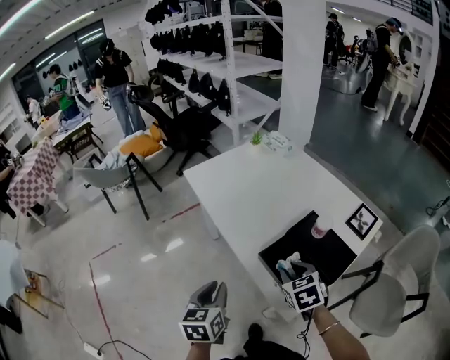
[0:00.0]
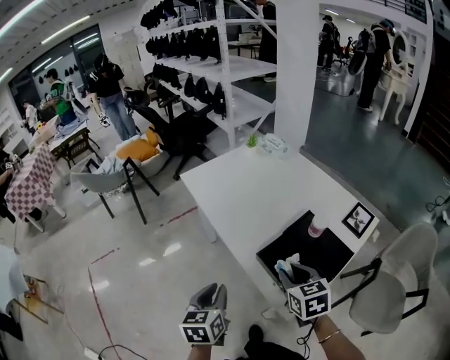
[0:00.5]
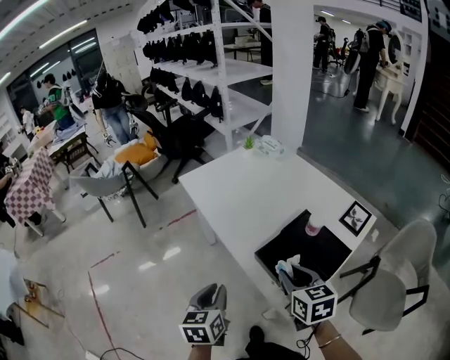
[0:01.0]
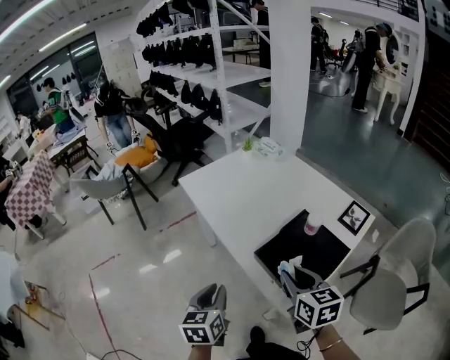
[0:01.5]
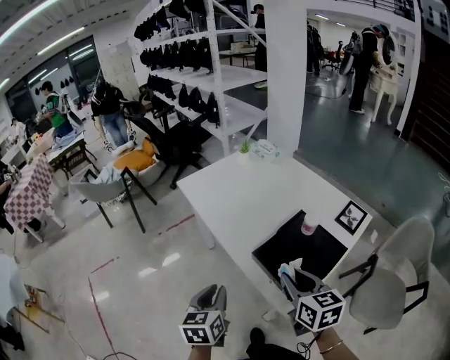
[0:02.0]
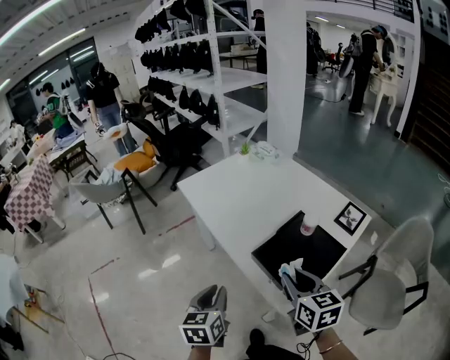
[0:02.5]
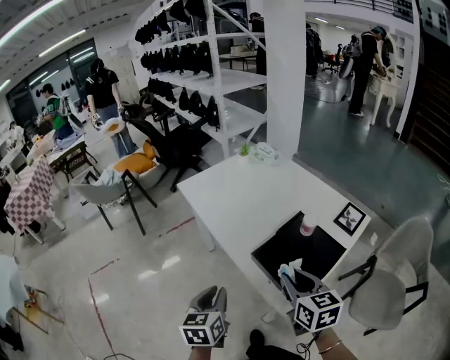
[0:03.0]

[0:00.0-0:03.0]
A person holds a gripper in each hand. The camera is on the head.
0.0 to 1.5 s: The right gripper travels upward and backward by about 10 cm, and changes its angle by some 30 degrees.
1.5 to 3.0 s: The grippers make only small movements.

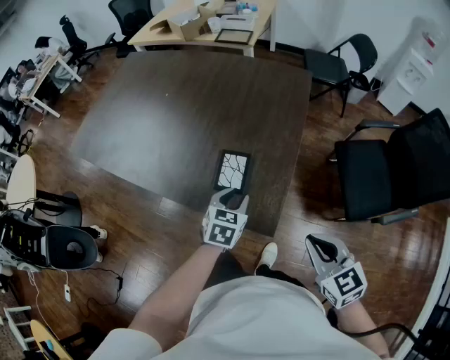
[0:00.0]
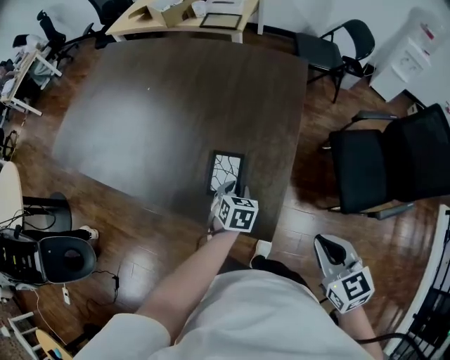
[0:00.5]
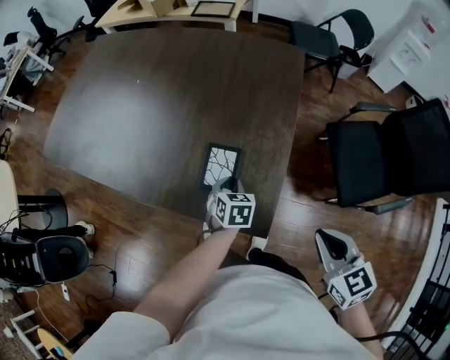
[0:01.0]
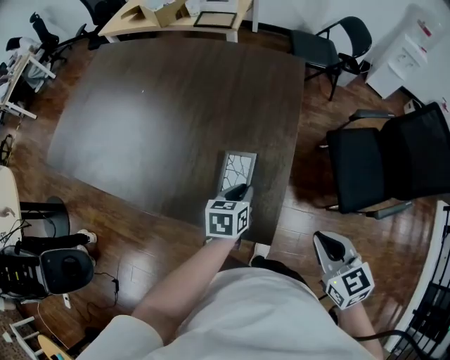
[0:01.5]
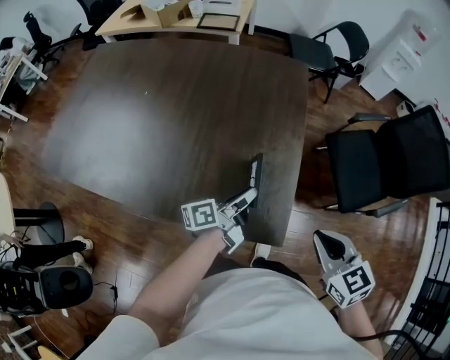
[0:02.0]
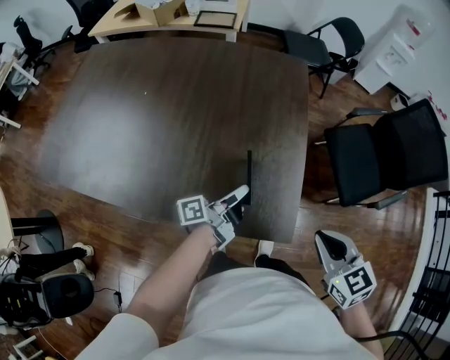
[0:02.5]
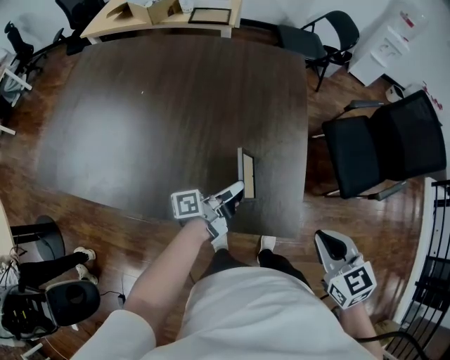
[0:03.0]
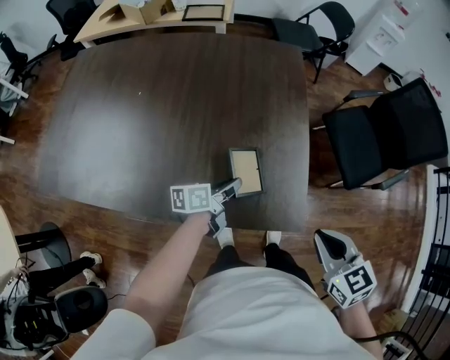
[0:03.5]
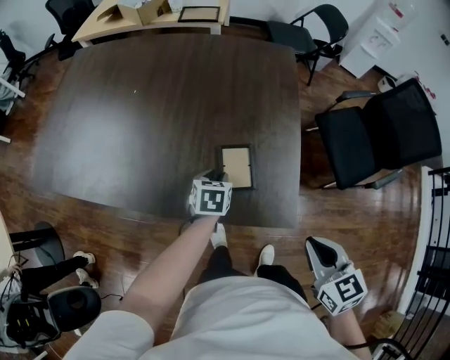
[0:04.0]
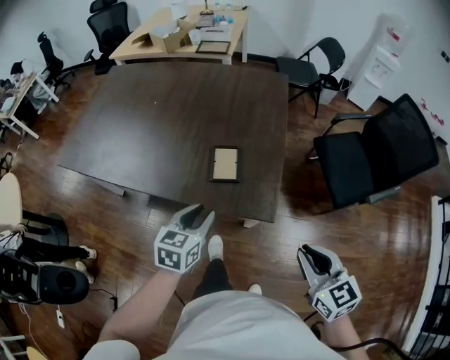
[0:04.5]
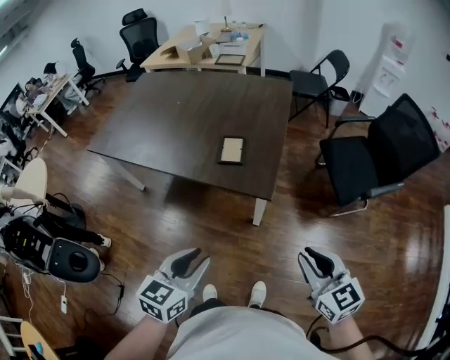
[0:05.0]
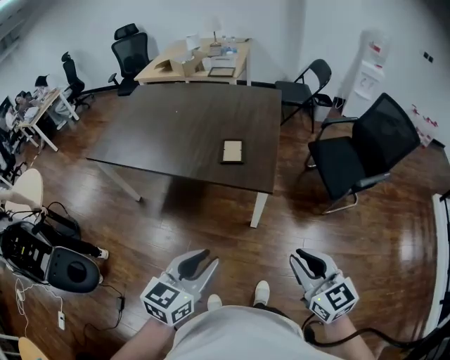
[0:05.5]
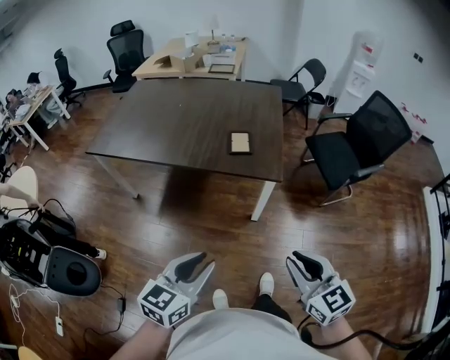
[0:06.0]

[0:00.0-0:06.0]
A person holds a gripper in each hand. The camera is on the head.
0.0 to 2.0 s: Both grippers move forward, roughly 5 cm. The left gripper travels downward and back again, some 10 cm each way, and points its fingers roughly 40 degrees further upward.
2.0 to 4.0 s: The left gripper travels to the left and downward by about 15 cm, and points its fingers about 50 degrees further downward. Meanwhile the right gripper moves backward, approximately 5 cm.
4.0 to 6.0 s: The left gripper moves backward and upward, some 60 cm, and tips its fingers upward by some 30 degrees. Meanwhile the right gripper moves backward, approximately 30 cm, and swivels approximately 20 degrees.

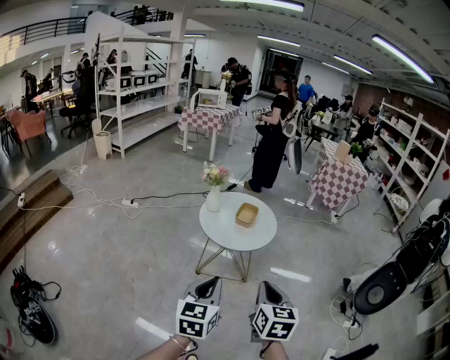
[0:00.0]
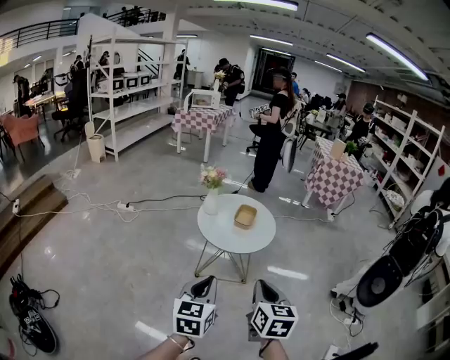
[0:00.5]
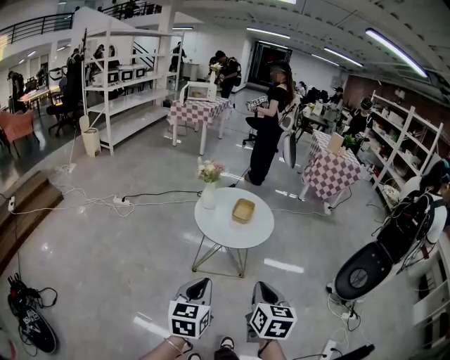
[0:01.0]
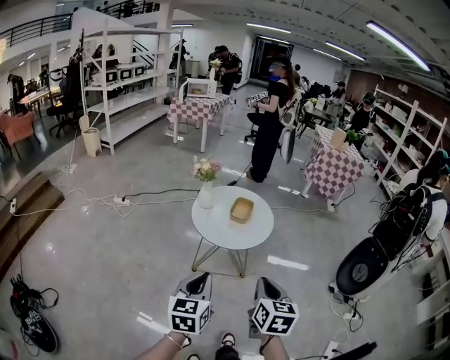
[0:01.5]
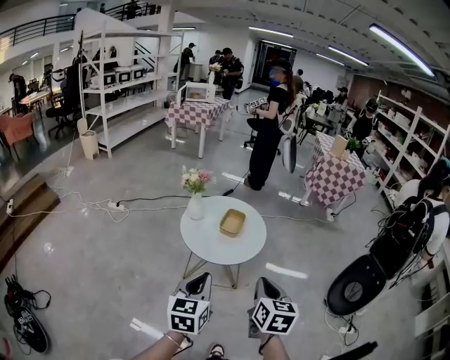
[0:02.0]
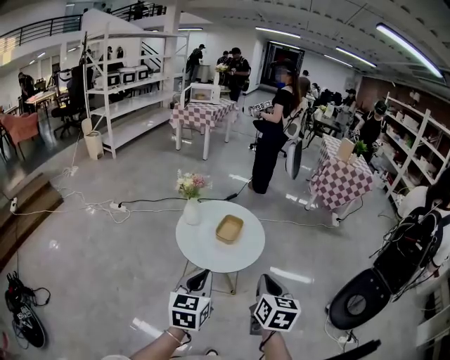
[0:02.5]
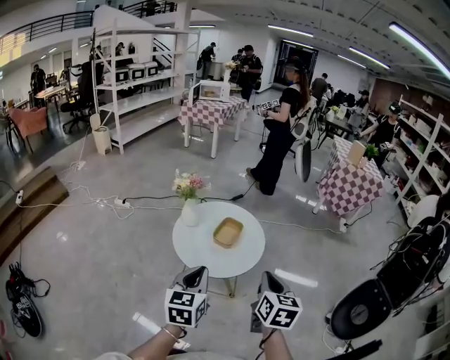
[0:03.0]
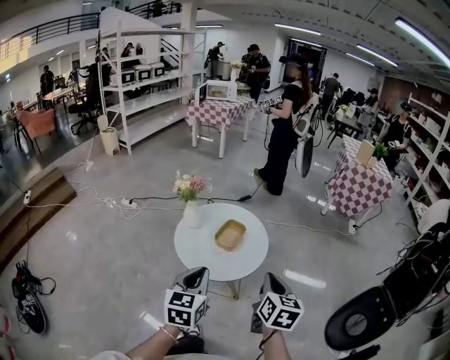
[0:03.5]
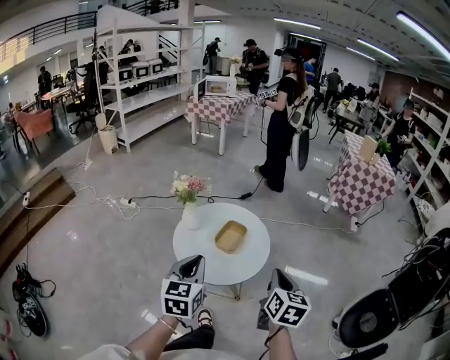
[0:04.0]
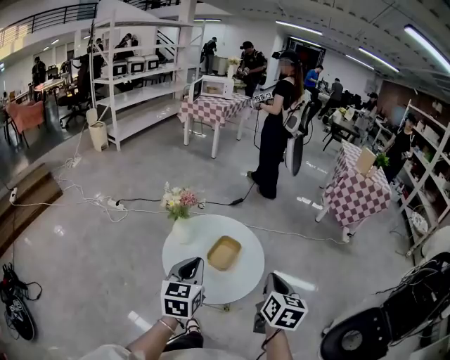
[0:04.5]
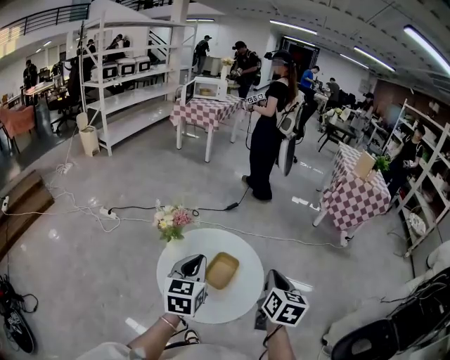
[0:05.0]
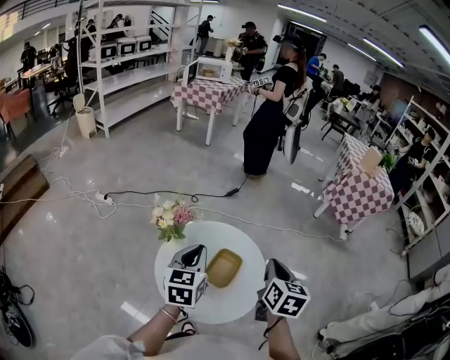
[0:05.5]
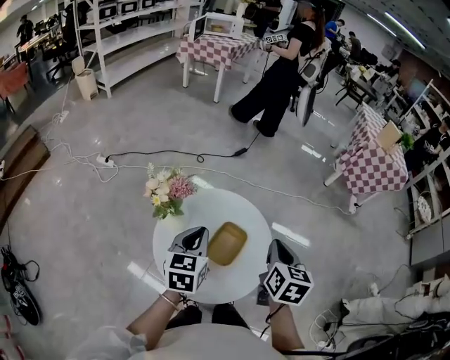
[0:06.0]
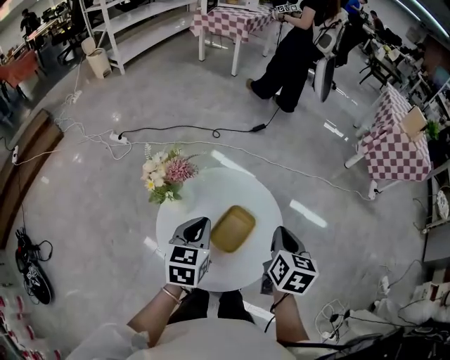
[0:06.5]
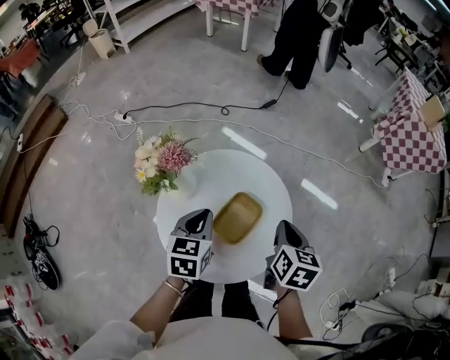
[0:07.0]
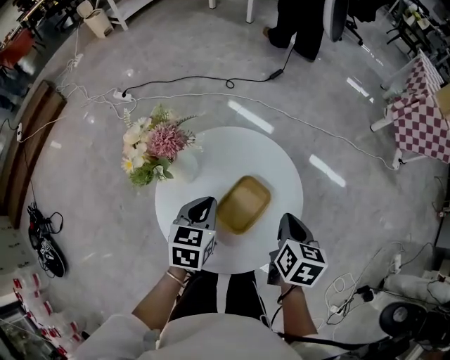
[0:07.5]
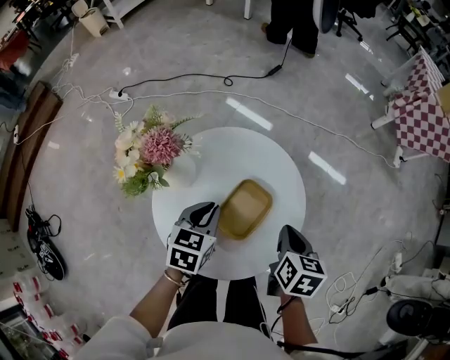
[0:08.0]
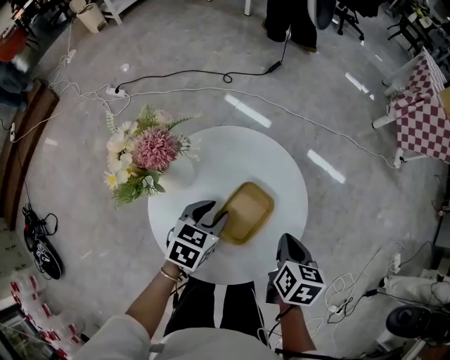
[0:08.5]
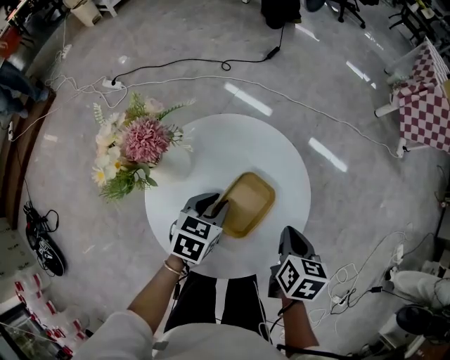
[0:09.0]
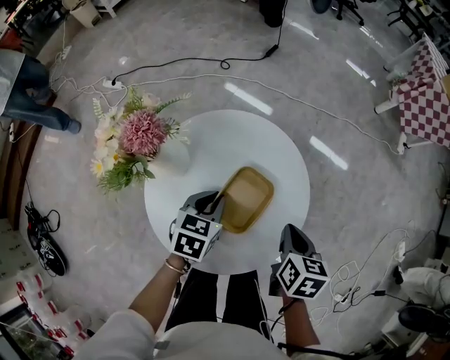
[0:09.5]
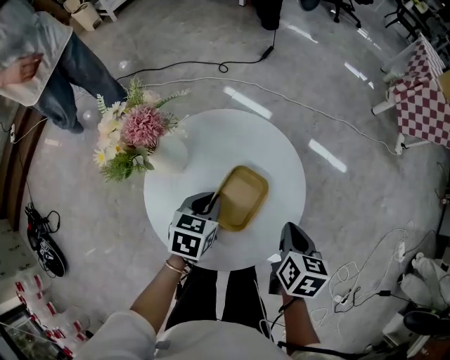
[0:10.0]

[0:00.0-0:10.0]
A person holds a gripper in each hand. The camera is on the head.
0.0 to 2.0 s: Both grippers travel together forward, some 10 cm.
2.0 to 4.0 s: The right gripper moves forward and to the right, roughly 20 cm. Meanwhile the left gripper shifts roughly 15 cm forward.
4.0 to 6.0 s: The grippers both shift forward by roughly 20 cm.
6.0 to 8.0 s: The two grippers go some 15 cm downward. The left gripper changes its angle by about 20 degrees. Meanwhile the right gripper rotates about 20 degrees.
8.0 to 10.0 s: The left gripper opens, then closes again.

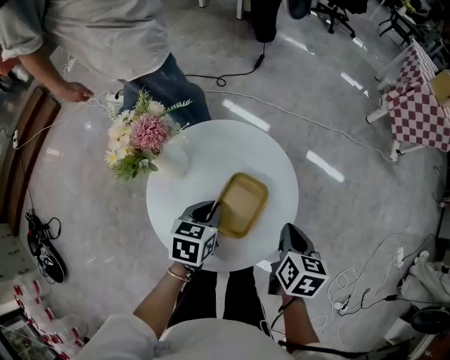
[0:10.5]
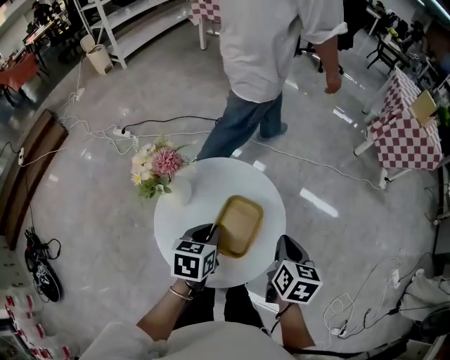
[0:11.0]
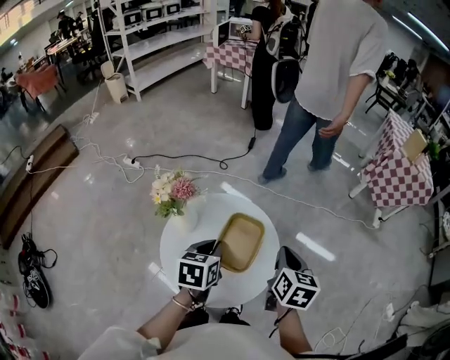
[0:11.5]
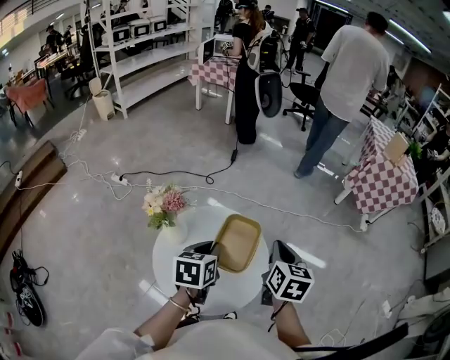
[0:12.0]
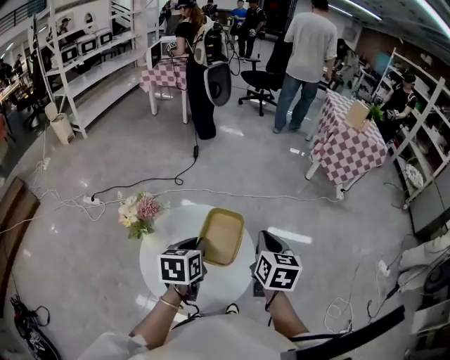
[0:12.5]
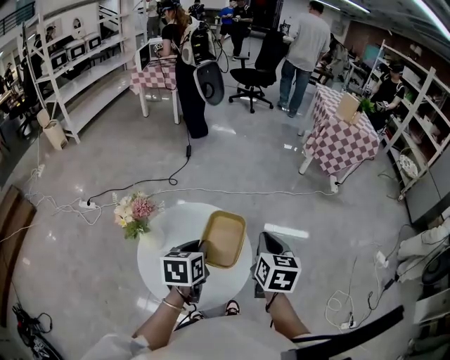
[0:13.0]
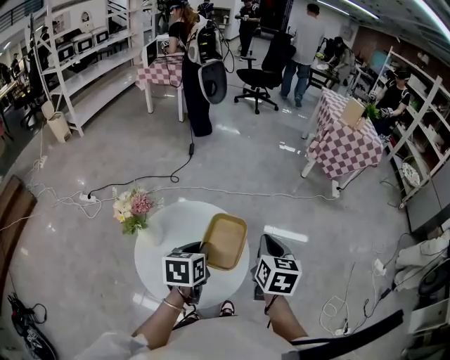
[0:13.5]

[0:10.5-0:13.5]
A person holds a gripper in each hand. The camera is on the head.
10.5 to 12.0 s: The right gripper heads upward and forward, covering roughly 20 cm, and turns by roughly 20 degrees; the left gripper heads upward, covering about 15 cm.
12.0 to 13.5 s: The right gripper moves to the right, some 5 cm.

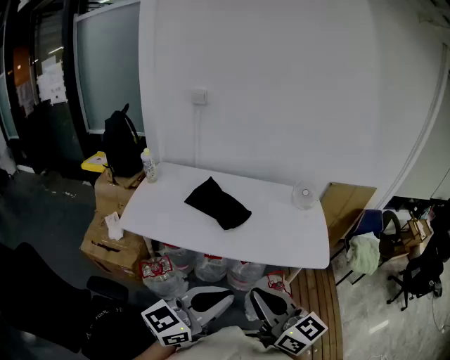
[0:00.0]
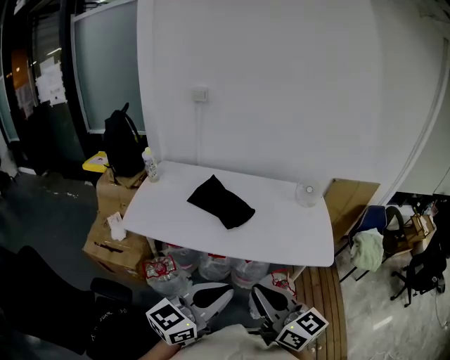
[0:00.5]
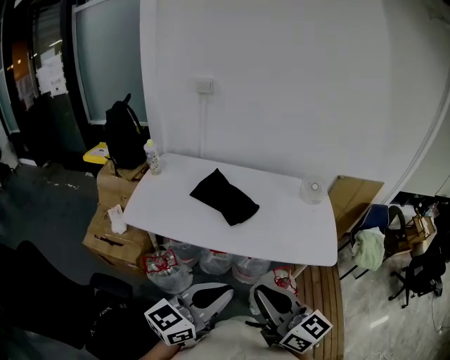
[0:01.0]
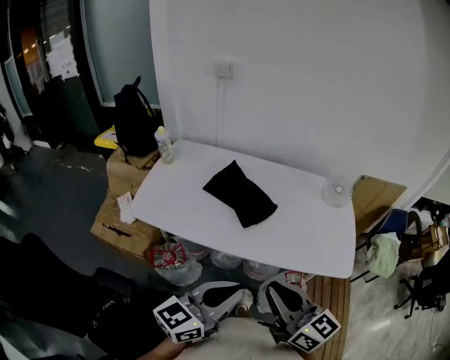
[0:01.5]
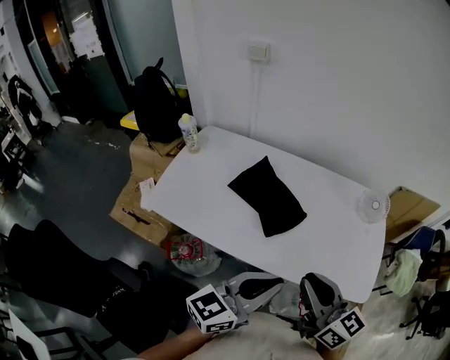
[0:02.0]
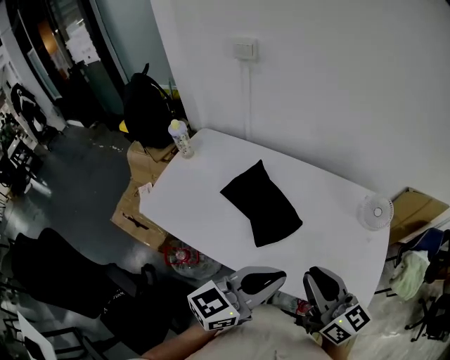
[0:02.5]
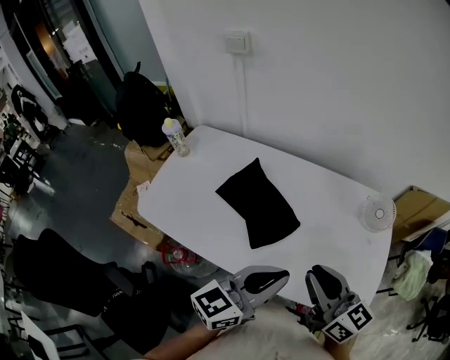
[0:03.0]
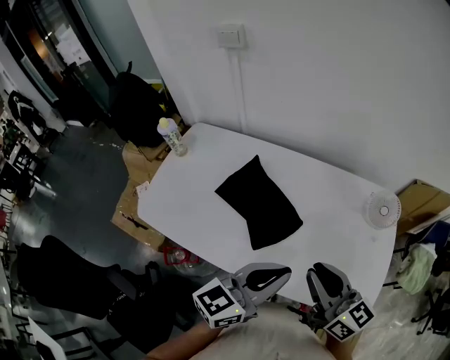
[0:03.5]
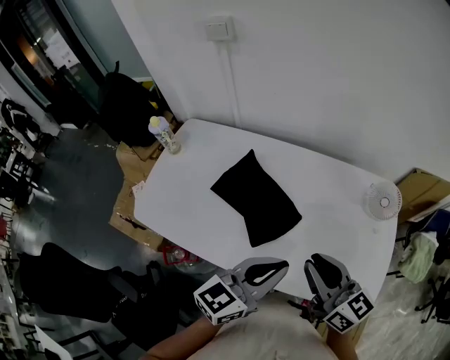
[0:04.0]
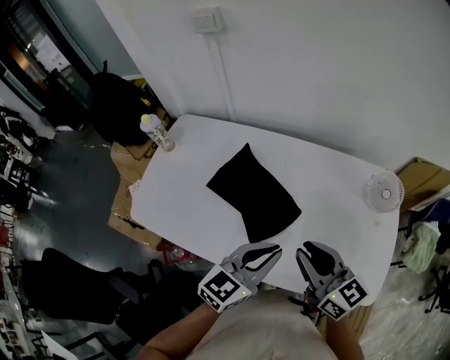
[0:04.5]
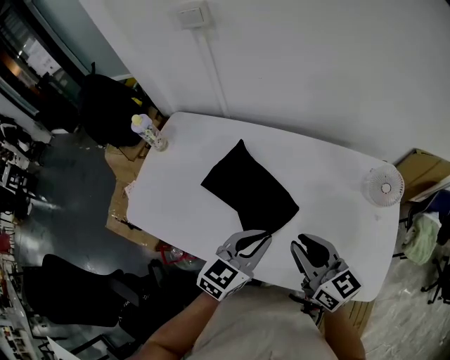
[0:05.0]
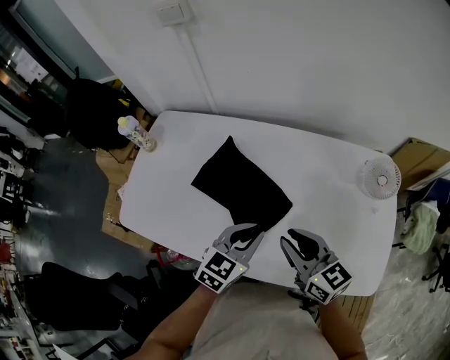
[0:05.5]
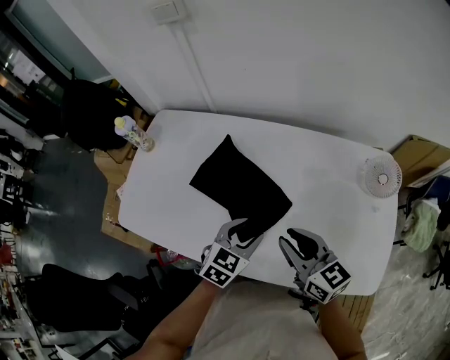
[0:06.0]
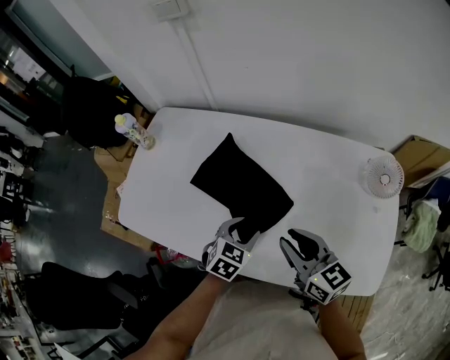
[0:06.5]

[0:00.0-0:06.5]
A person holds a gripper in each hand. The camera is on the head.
0.0 to 2.0 s: Both grippers travel together forward, approximately 25 cm.
2.0 to 4.5 s: Both grippers move forward and downward, some 20 cm.
4.5 to 6.5 s: The left gripper travels downward by roughly 15 cm, tips its fingers downward by approximately 30 degrees, and opens its fingers; the right gripper goes approximately 10 cm downward.
